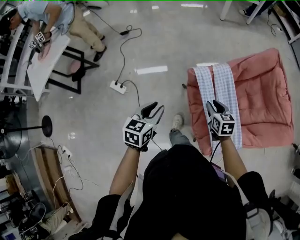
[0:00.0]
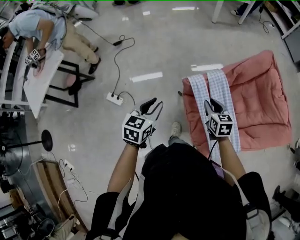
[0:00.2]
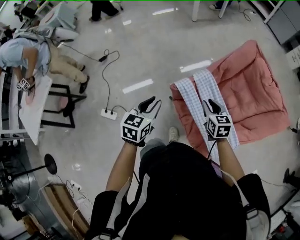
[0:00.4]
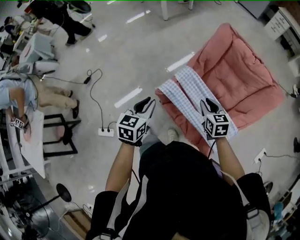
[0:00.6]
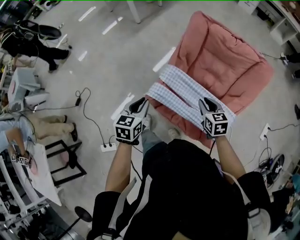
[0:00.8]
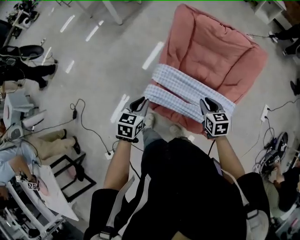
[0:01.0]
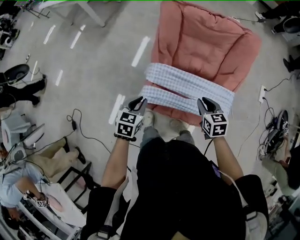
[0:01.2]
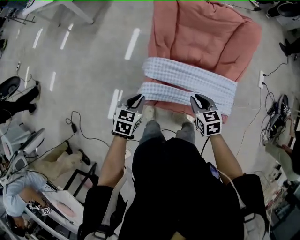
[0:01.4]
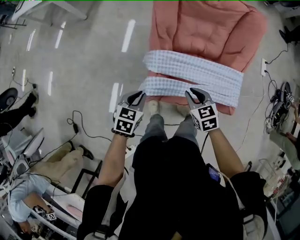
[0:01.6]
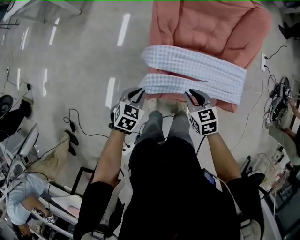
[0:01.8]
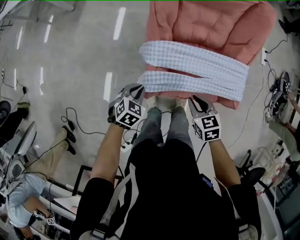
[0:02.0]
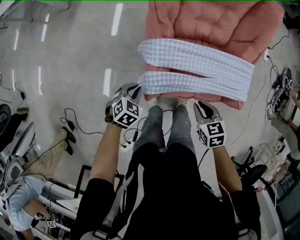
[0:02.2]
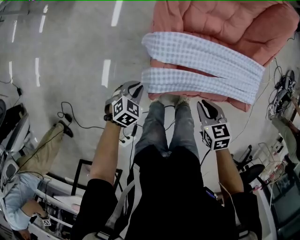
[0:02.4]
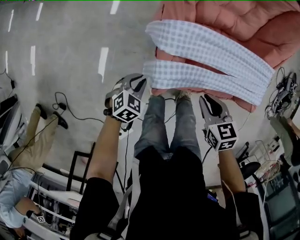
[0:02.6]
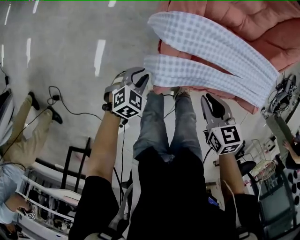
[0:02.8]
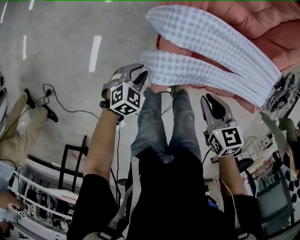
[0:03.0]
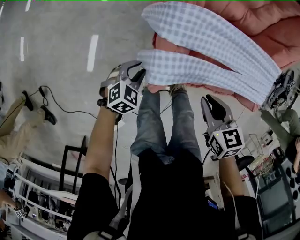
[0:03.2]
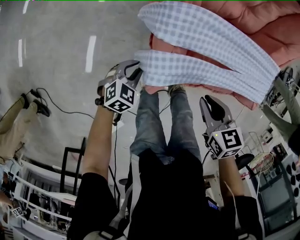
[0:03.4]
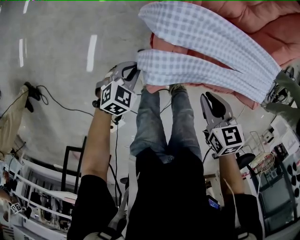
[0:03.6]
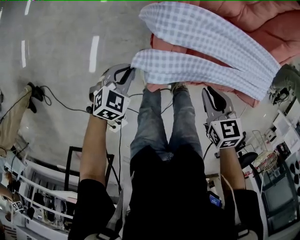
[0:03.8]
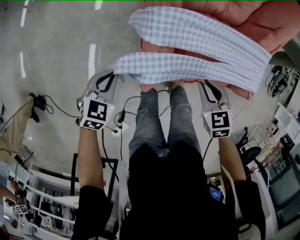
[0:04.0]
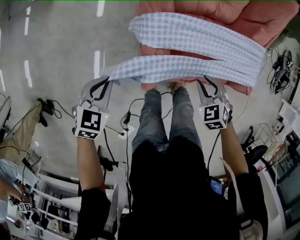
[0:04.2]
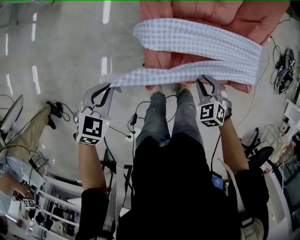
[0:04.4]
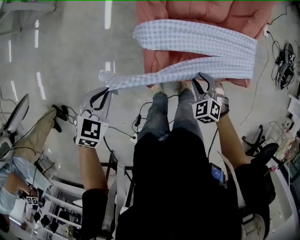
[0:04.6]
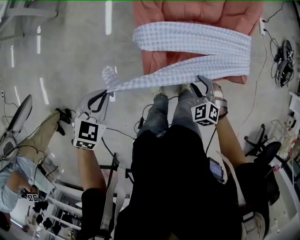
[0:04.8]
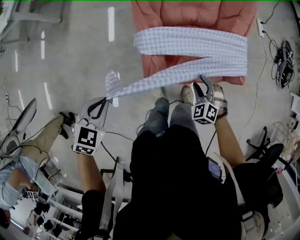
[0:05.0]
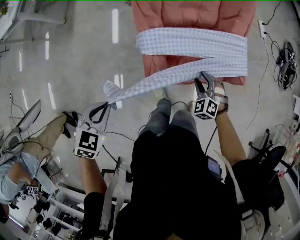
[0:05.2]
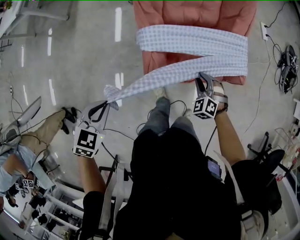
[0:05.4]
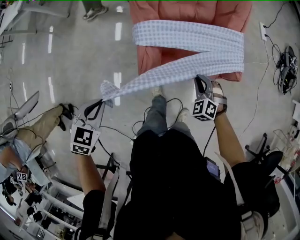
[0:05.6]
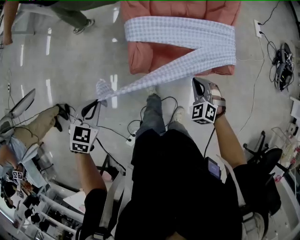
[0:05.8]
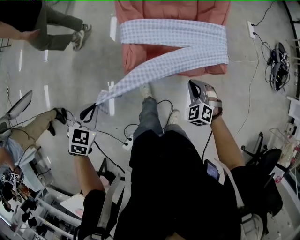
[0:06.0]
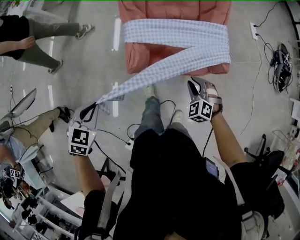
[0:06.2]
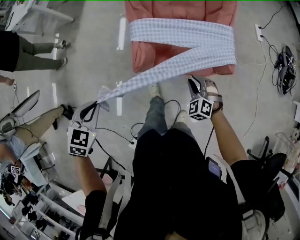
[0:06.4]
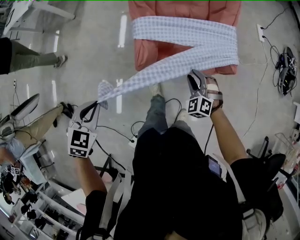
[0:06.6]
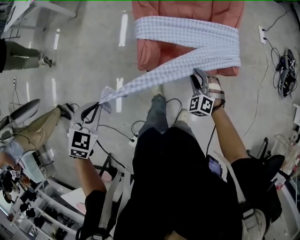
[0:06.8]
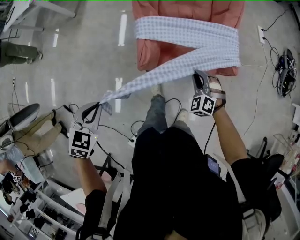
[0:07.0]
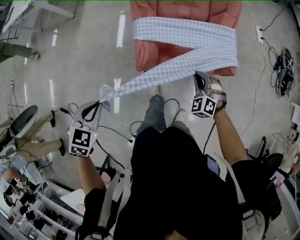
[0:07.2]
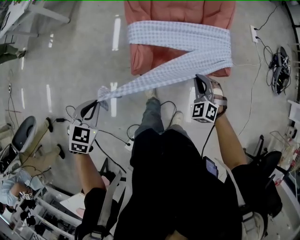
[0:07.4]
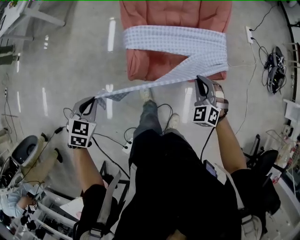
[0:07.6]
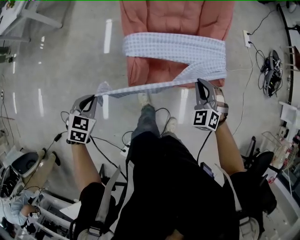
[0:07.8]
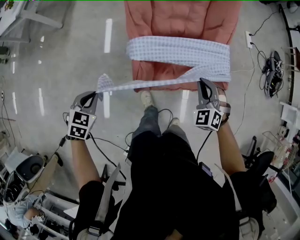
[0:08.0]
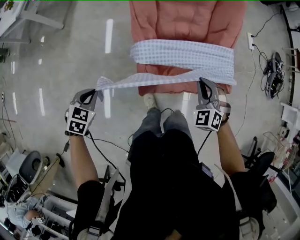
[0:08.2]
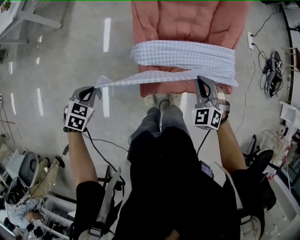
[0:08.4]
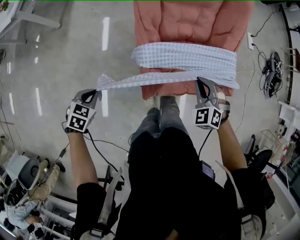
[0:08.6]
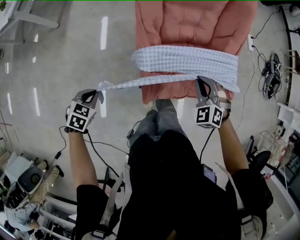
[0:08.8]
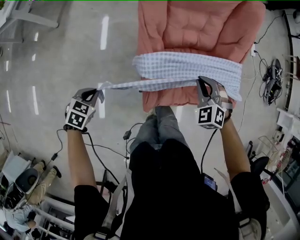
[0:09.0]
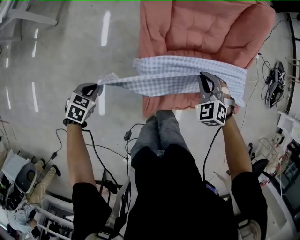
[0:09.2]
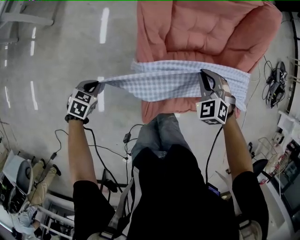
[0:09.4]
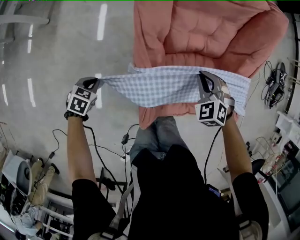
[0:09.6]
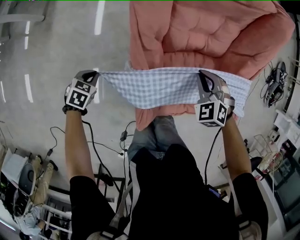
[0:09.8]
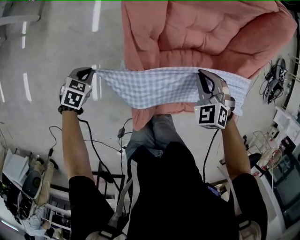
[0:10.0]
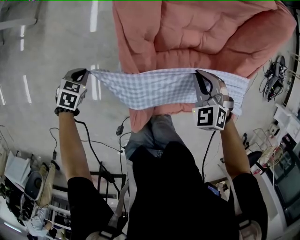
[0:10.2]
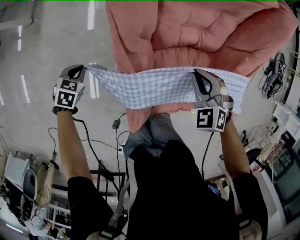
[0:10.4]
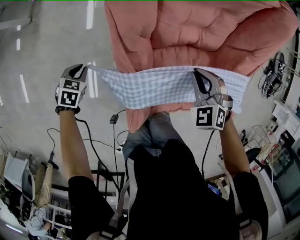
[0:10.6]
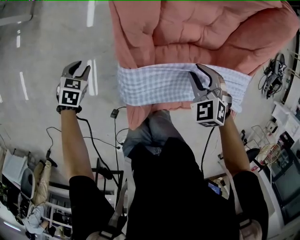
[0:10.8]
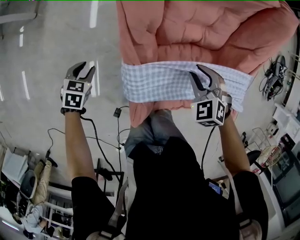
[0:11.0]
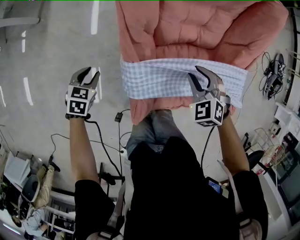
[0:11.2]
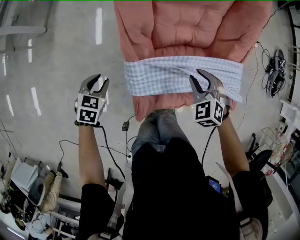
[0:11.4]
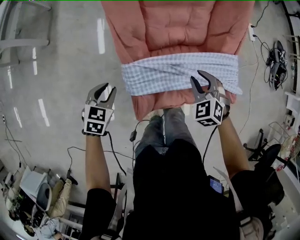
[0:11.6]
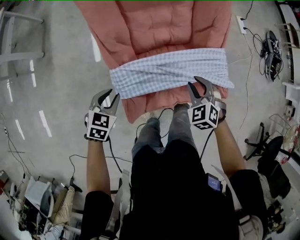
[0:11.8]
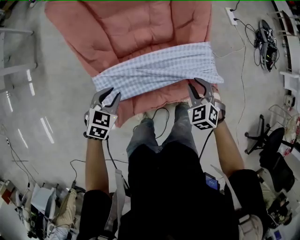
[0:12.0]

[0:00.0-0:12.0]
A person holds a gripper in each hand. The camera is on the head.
0:00.0 to 0:01.6: The right gripper shifts by approximately 10 cm, and rotates about 50 degrees. The left gripper shifts by some 40 cm, and turns by roughly 80 degrees.
0:01.6 to 0:03.0: The right gripper is displaced downward and backward by about 15 cm; the left gripper heads downward, covering roughly 25 cm, and changes its angle by some 30 degrees.
0:03.0 to 0:04.4: The right gripper turns by approximately 40 degrees; the left gripper shifts roughly 25 cm upward and to the left.
0:04.4 to 0:06.0: The left gripper moves backward, upward and to the right, approximately 20 cm. Meanwhile the right gripper goes roughly 15 cm to the right, backward and upward.
0:06.0 to 0:07.6: The left gripper shifts by roughly 5 cm. The right gripper heads upward, covering approximately 10 cm.
0:07.6 to 0:09.0: The right gripper is displaced forward and to the left by roughly 20 cm. Meanwhile the left gripper goes about 25 cm forward, downward and to the left.
0:09.0 to 0:10.4: The left gripper is displaced forward and downward by some 25 cm; the right gripper goes some 15 cm forward and downward.
0:10.4 to 0:12.0: The right gripper heads to the right and backward, covering some 25 cm, and swivels approximately 20 degrees, while the left gripper is displaced to the right and upward by some 30 cm, and rotates some 20 degrees.

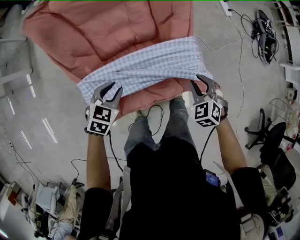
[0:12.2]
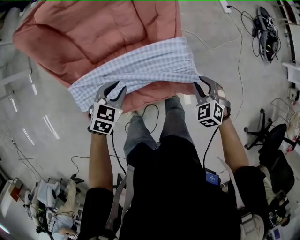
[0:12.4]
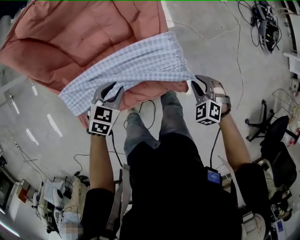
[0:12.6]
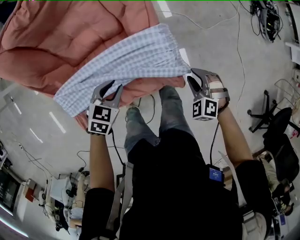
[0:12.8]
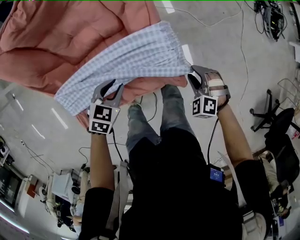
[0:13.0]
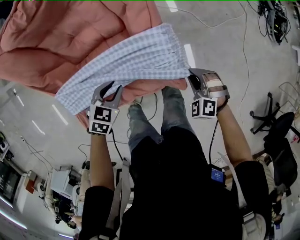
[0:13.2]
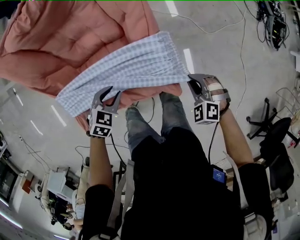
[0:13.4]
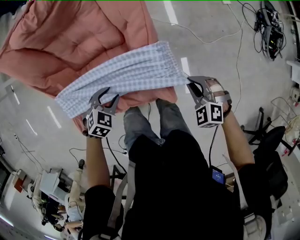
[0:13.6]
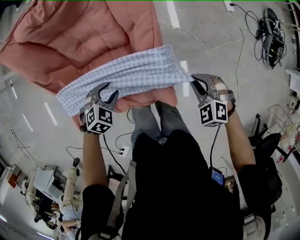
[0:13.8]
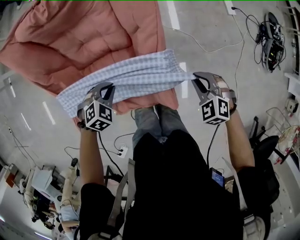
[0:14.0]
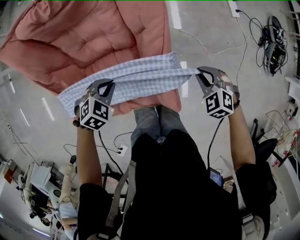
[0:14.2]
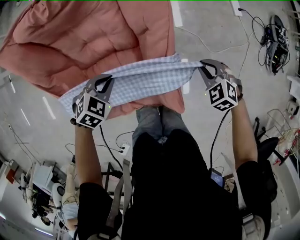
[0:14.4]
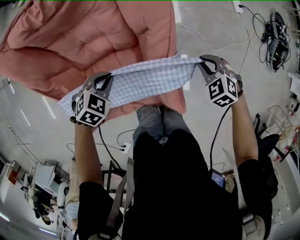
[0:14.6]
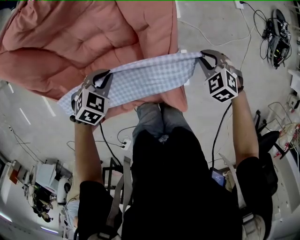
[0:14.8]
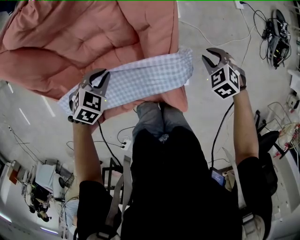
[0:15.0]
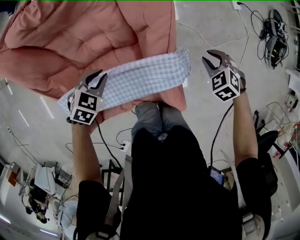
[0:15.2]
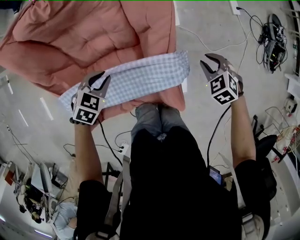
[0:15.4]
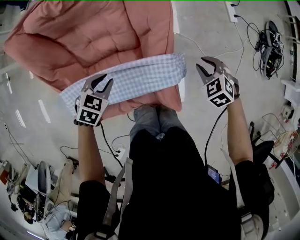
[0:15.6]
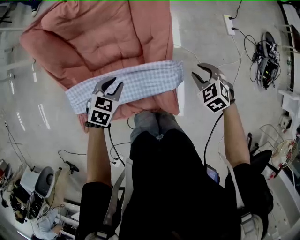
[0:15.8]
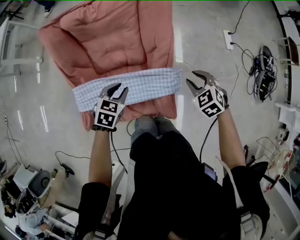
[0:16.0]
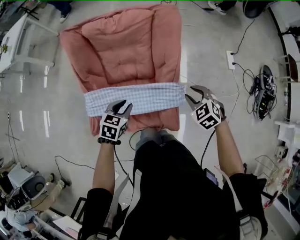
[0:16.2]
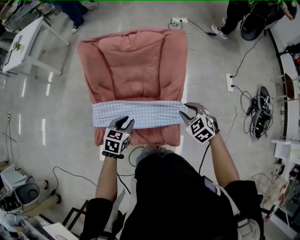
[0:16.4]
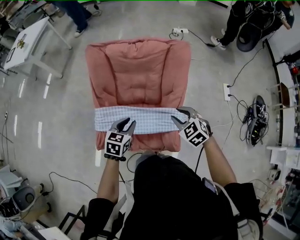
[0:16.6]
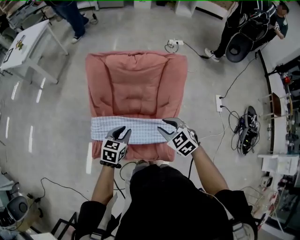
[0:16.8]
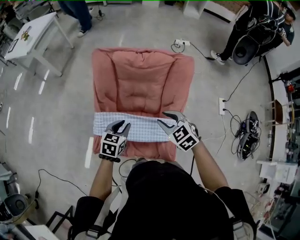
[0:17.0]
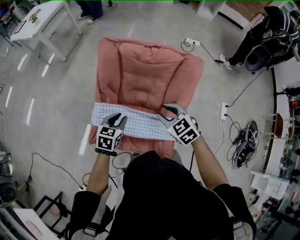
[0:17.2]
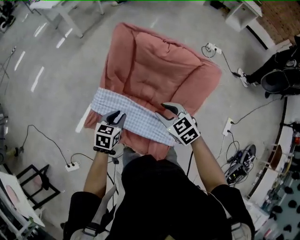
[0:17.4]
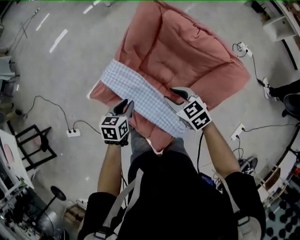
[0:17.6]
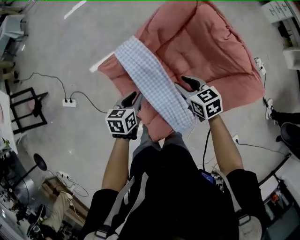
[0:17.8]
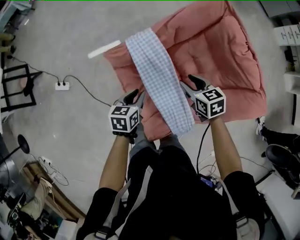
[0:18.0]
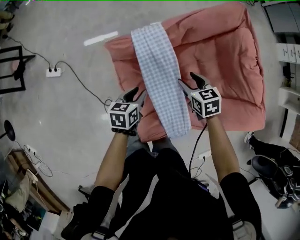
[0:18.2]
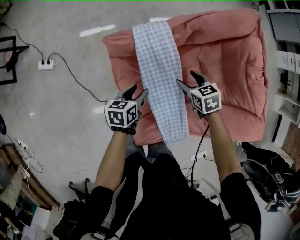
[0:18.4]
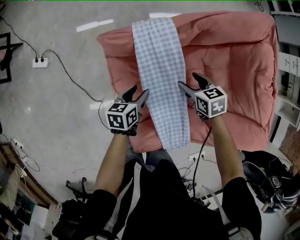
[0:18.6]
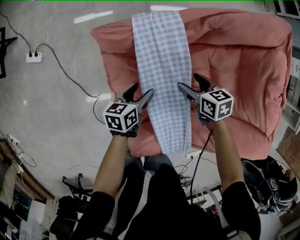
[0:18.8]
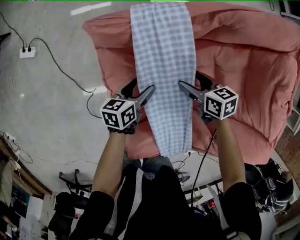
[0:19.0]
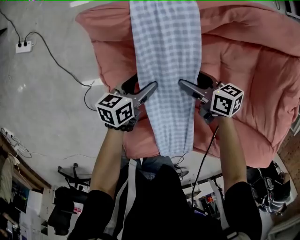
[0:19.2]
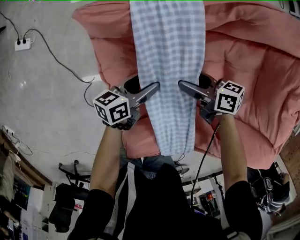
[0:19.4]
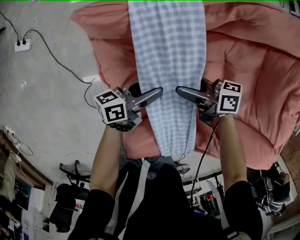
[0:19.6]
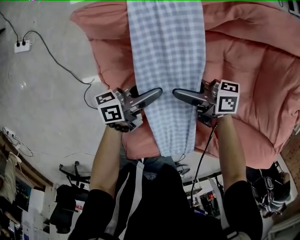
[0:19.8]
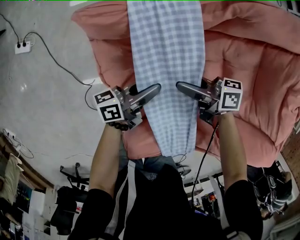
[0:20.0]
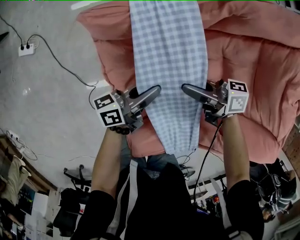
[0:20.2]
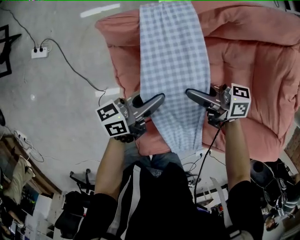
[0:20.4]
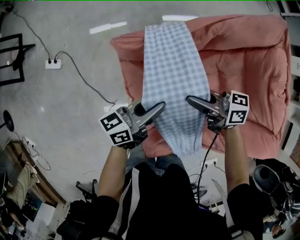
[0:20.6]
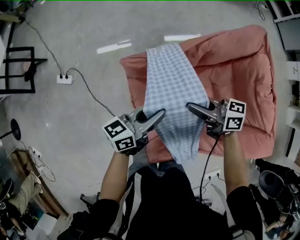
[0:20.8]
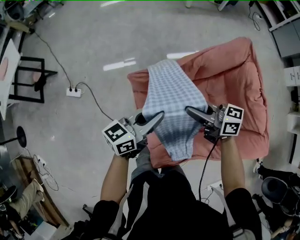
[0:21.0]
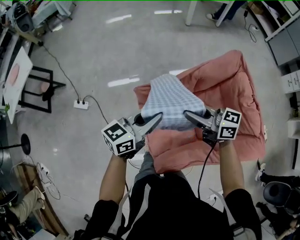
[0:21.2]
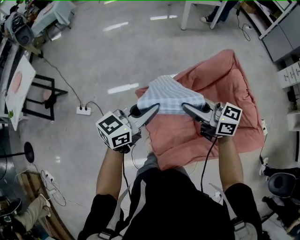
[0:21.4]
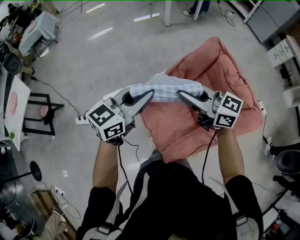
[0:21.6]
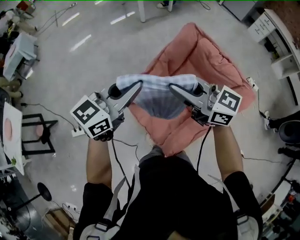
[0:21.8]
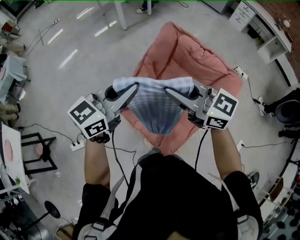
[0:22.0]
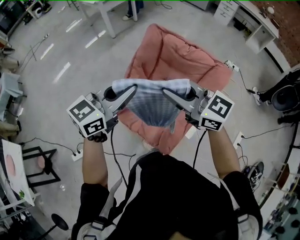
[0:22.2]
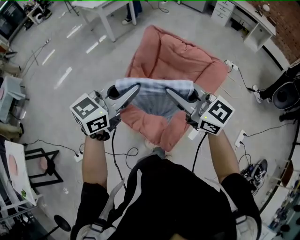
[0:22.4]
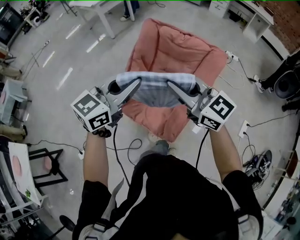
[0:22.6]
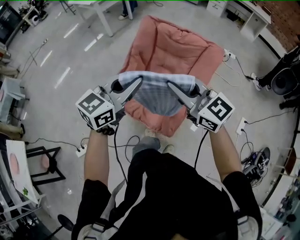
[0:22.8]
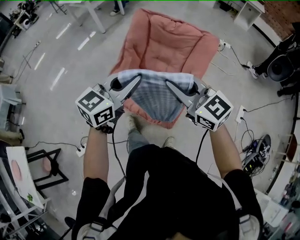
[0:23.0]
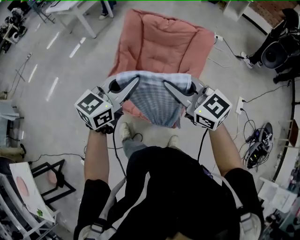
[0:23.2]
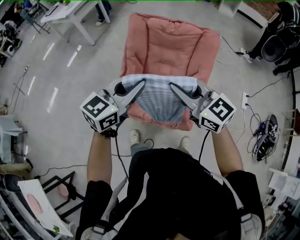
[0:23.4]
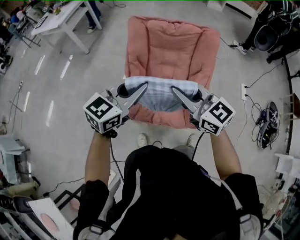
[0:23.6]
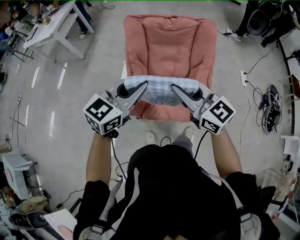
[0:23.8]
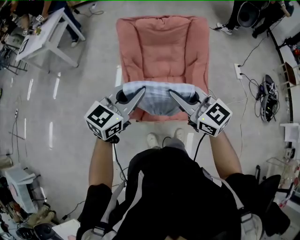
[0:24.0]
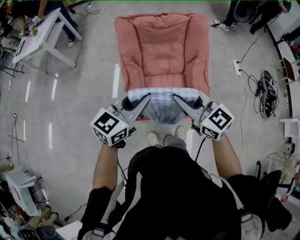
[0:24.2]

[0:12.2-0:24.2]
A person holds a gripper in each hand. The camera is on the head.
0:12.2 to 0:13.8: The left gripper moves to the right, forward and downward, about 20 cm, and turns by approximately 20 degrees; the right gripper shifts some 20 cm to the right and forward, and swivels roughly 20 degrees.
0:13.8 to 0:15.2: The right gripper goes approximately 15 cm forward and downward; the left gripper heads forward and to the left, covering some 10 cm.
0:15.2 to 0:16.6: Both grippers move upward, approximately 25 cm. The left gripper rotates approximately 50 degrees; the right gripper changes its angle by some 30 degrees.
0:16.6 to 0:18.2: The left gripper heads downward, covering approximately 15 cm, and twists approximately 70 degrees counterclockwise, seen from behind, while the right gripper changes place by some 25 cm, and rotates some 50 degrees.
0:18.2 to 0:19.8: Both grippers travel together downward, roughly 15 cm. The left gripper points its fingers approximately 40 degrees further upward; the right gripper tilts its fingers about 30 degrees upward.
0:19.8 to 0:21.2: The grippers both shift upward by about 35 cm. The right gripper turns by about 40 degrees, and closes its fingers, while the left gripper twists about 50 degrees clockwise, seen from behind.
0:21.2 to 0:22.6: Both grippers move upward, approximately 20 cm. The right gripper changes its angle by roughly 60 degrees. The left gripper turns by some 50 degrees.
0:22.6 to 0:24.2: The left gripper ends up about 20 cm from where it was, and rotates about 30 degrees; the right gripper shifts by roughly 20 cm, and rotates about 40 degrees.
